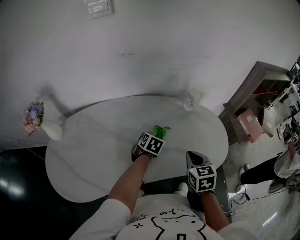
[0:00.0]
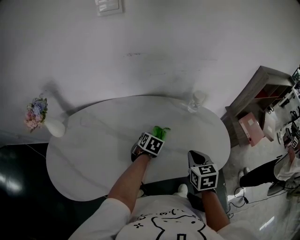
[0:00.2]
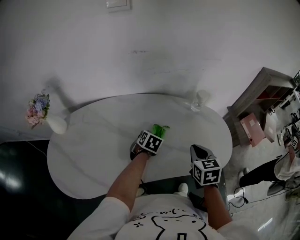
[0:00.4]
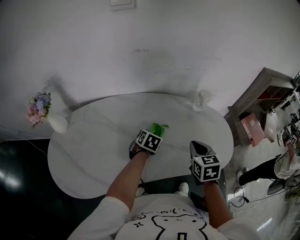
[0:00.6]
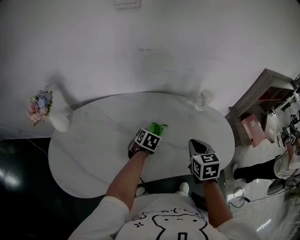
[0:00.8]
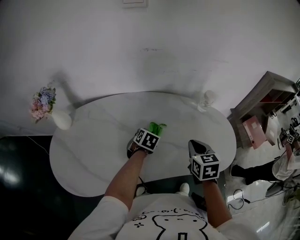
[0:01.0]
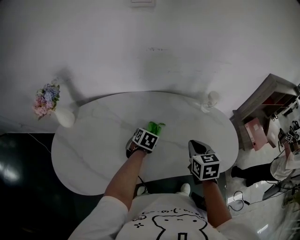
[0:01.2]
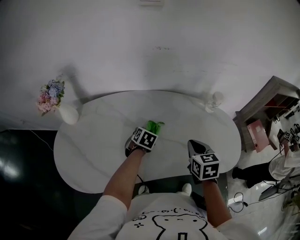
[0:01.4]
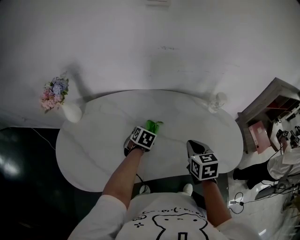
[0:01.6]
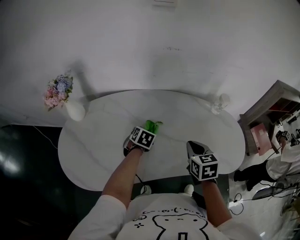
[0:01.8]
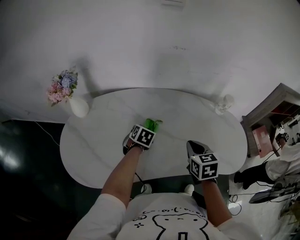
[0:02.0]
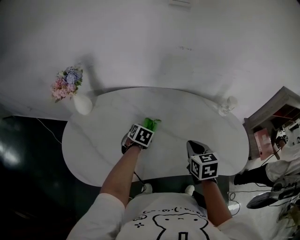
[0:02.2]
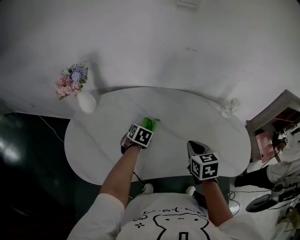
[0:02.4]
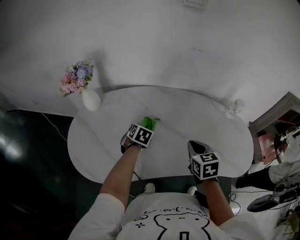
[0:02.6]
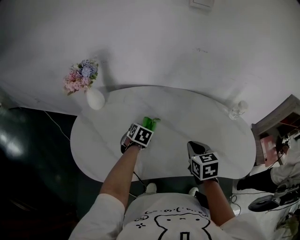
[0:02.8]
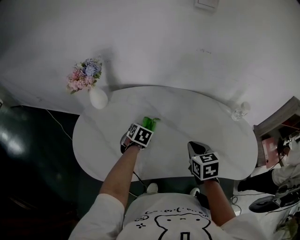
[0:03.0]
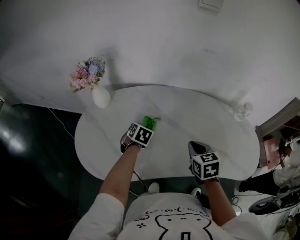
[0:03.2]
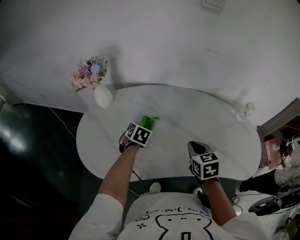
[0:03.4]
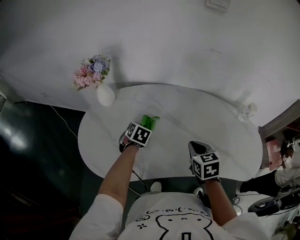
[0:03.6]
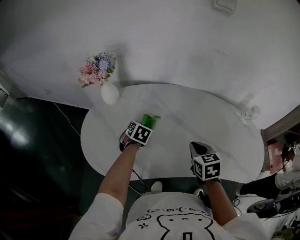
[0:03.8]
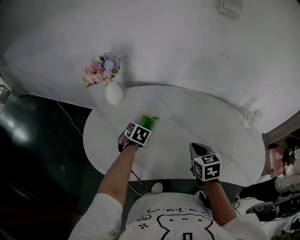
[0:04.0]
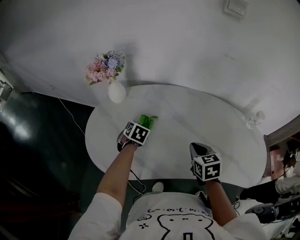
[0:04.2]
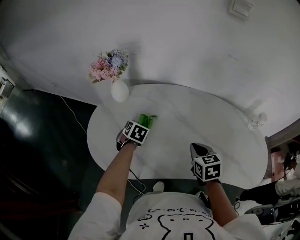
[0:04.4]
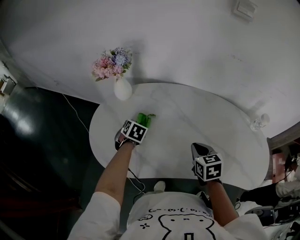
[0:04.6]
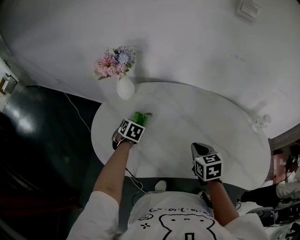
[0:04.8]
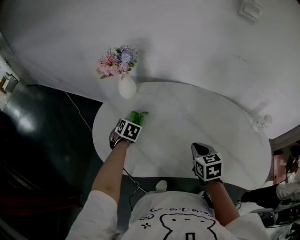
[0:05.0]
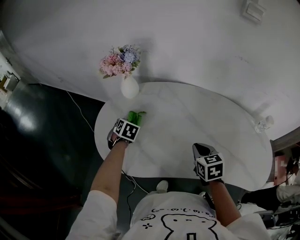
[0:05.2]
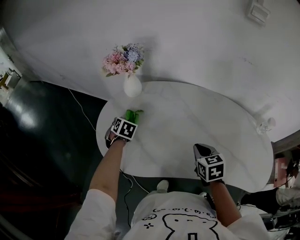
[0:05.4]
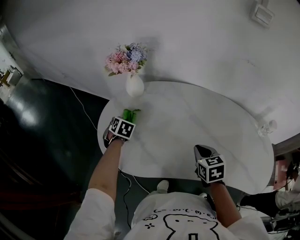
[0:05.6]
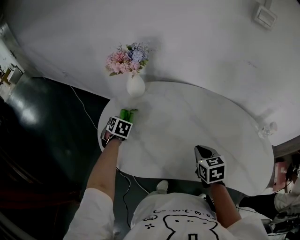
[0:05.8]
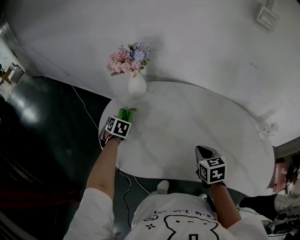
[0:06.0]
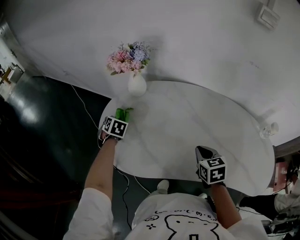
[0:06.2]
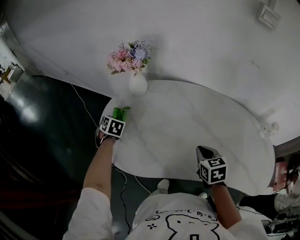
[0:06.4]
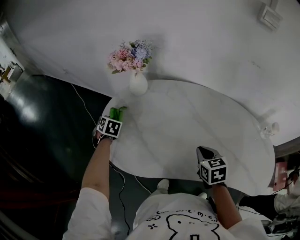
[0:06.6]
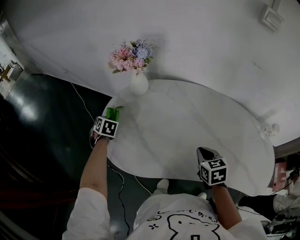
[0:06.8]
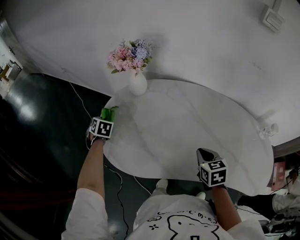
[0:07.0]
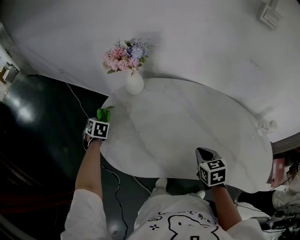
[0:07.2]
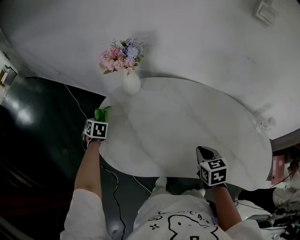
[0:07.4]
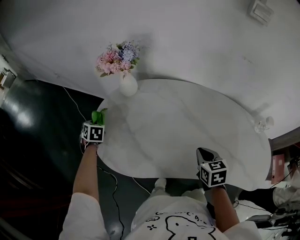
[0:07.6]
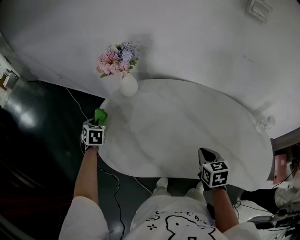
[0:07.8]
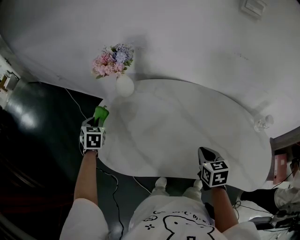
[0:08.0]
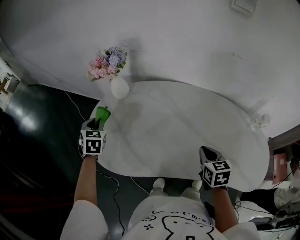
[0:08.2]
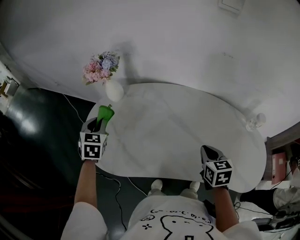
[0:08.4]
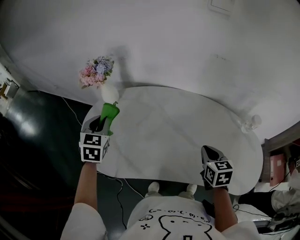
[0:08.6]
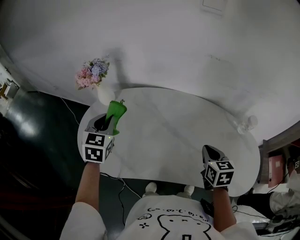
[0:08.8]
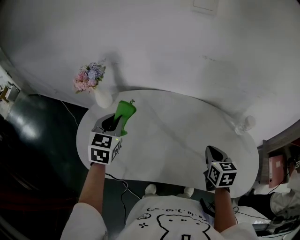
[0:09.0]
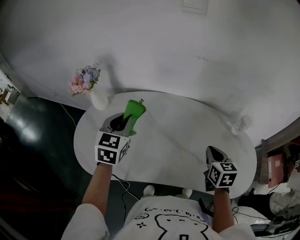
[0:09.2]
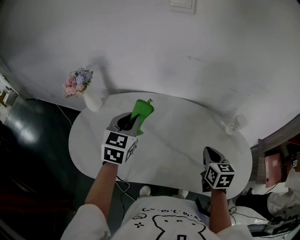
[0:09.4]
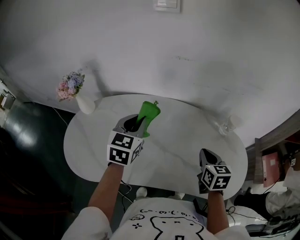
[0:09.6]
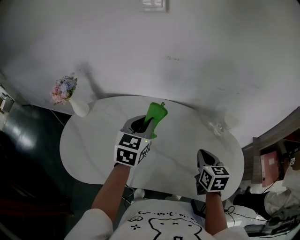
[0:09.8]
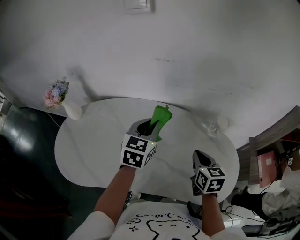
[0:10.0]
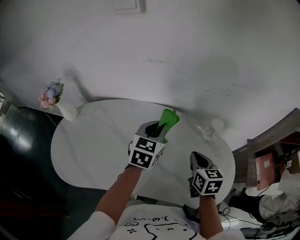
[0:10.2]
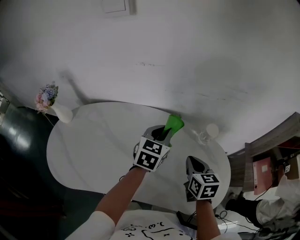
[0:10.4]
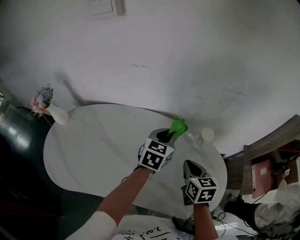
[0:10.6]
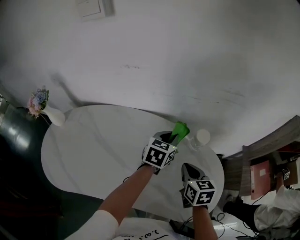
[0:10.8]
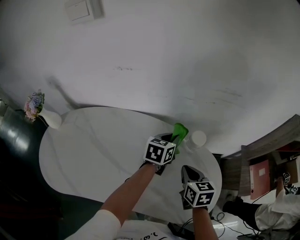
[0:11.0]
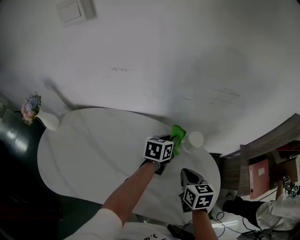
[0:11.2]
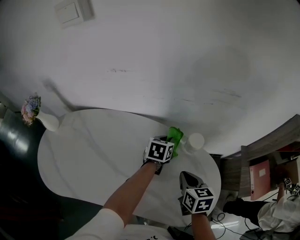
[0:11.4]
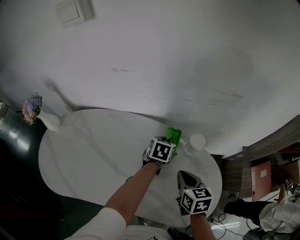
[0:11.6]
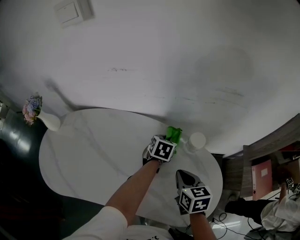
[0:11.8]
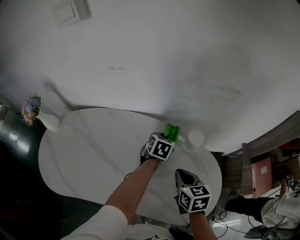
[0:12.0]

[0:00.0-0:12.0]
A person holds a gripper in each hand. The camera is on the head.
0:00.0 to 0:01.6: Both grippers move to the left, about 15 cm.
0:01.6 to 0:03.0: Both grippers travel together to the left, approximately 15 cm.
0:03.0 to 0:04.4: The right gripper goes about 5 cm to the left. The left gripper moves to the left, approximately 10 cm.
0:04.4 to 0:06.0: The left gripper is displaced to the left by roughly 20 cm.
0:06.0 to 0:07.6: The left gripper travels to the left by roughly 10 cm.
0:07.6 to 0:09.0: The right gripper moves to the right, approximately 20 cm, while the left gripper moves to the right and upward, about 40 cm, and rotates some 40 degrees.
0:09.0 to 0:10.4: The left gripper moves to the right, approximately 40 cm, and rotates roughly 20 degrees, while the right gripper goes about 15 cm to the right.
0:10.4 to 0:12.0: The right gripper ends up about 5 cm from where it was; the left gripper goes approximately 20 cm downward, to the right and forward, and swivels about 20 degrees.

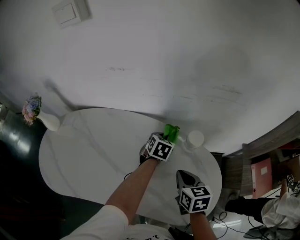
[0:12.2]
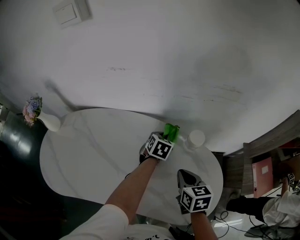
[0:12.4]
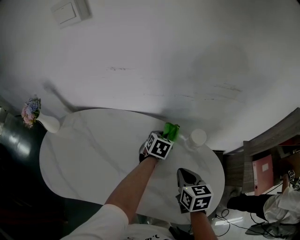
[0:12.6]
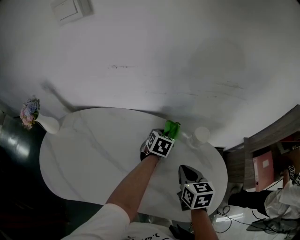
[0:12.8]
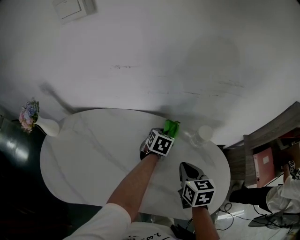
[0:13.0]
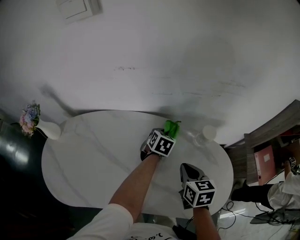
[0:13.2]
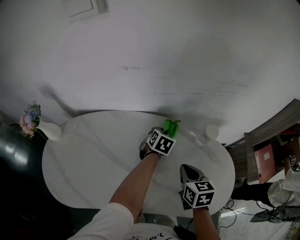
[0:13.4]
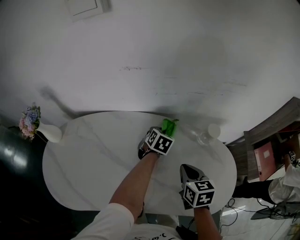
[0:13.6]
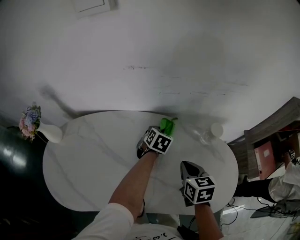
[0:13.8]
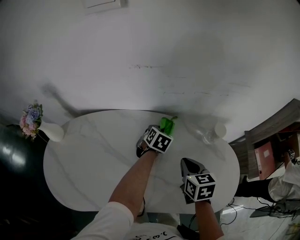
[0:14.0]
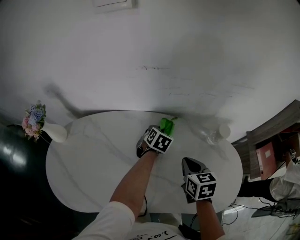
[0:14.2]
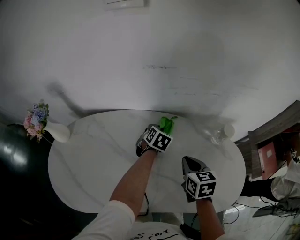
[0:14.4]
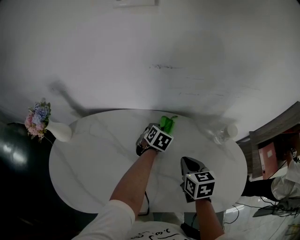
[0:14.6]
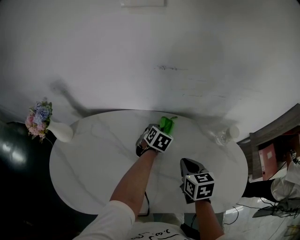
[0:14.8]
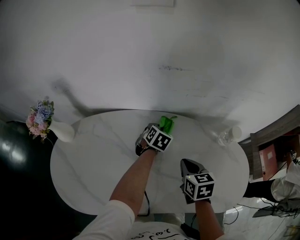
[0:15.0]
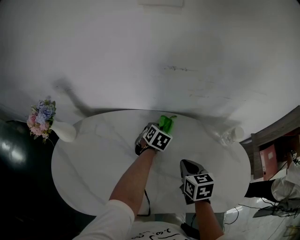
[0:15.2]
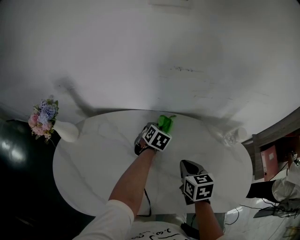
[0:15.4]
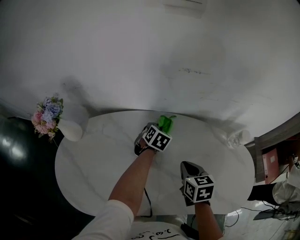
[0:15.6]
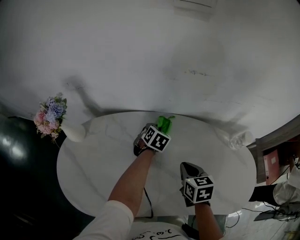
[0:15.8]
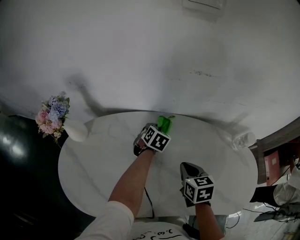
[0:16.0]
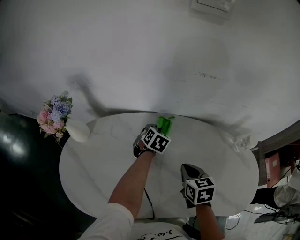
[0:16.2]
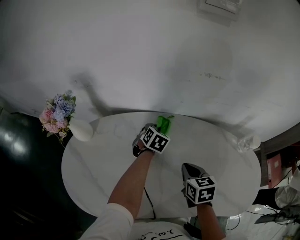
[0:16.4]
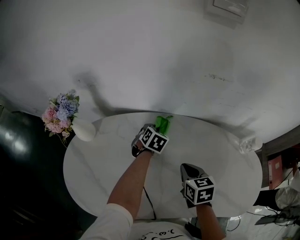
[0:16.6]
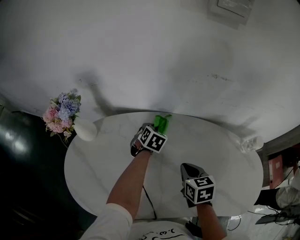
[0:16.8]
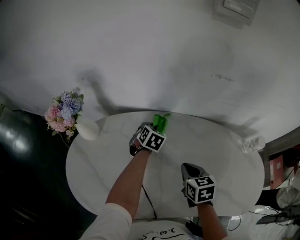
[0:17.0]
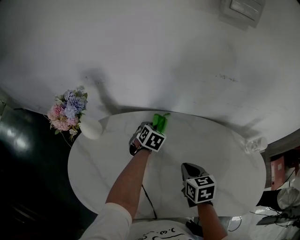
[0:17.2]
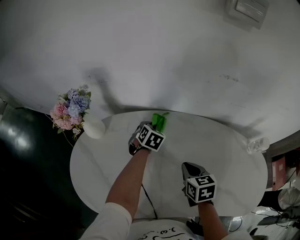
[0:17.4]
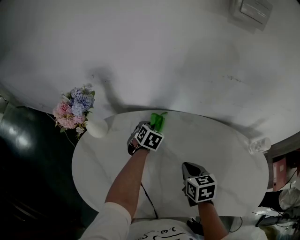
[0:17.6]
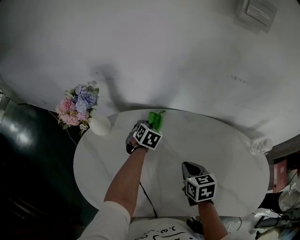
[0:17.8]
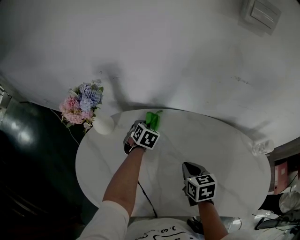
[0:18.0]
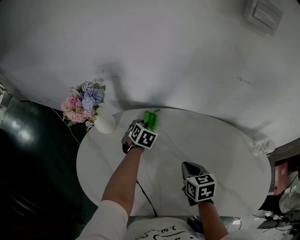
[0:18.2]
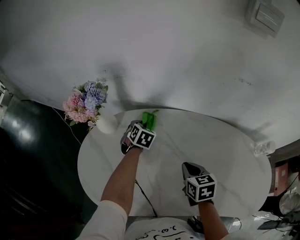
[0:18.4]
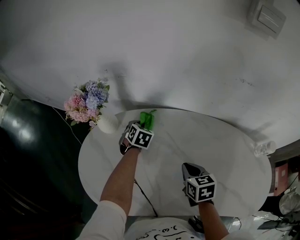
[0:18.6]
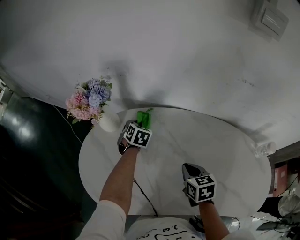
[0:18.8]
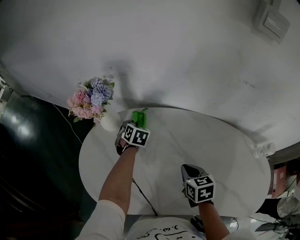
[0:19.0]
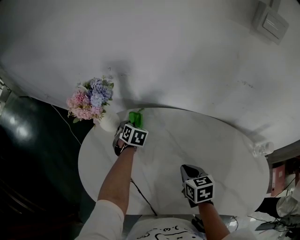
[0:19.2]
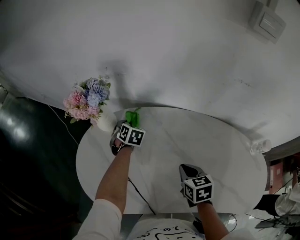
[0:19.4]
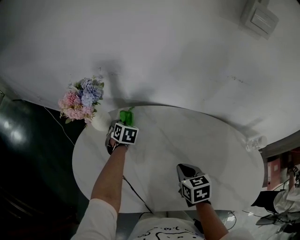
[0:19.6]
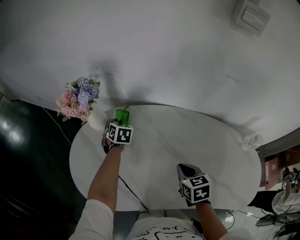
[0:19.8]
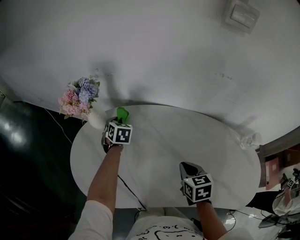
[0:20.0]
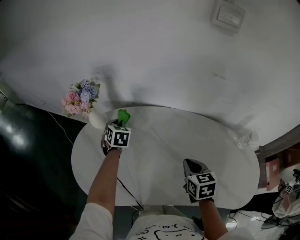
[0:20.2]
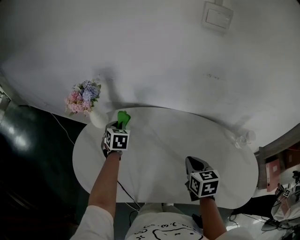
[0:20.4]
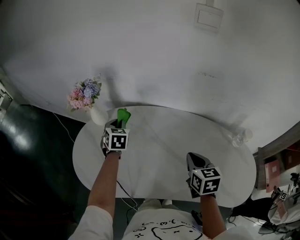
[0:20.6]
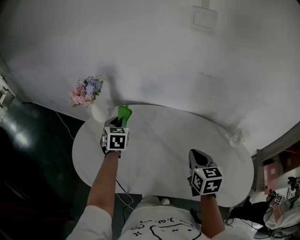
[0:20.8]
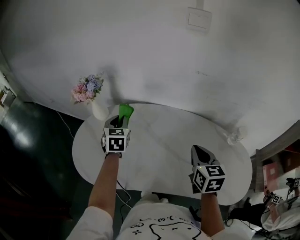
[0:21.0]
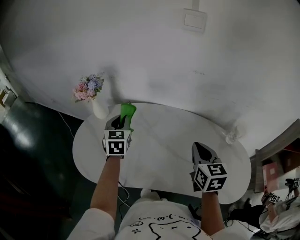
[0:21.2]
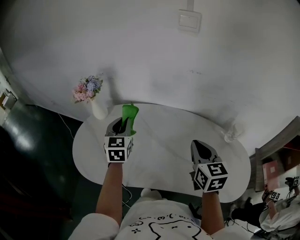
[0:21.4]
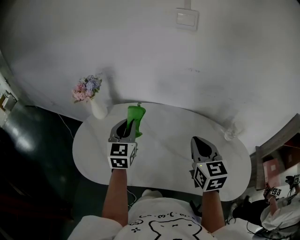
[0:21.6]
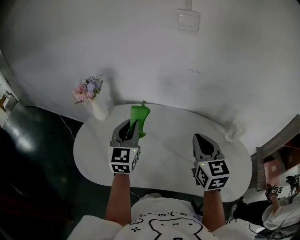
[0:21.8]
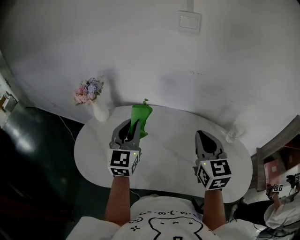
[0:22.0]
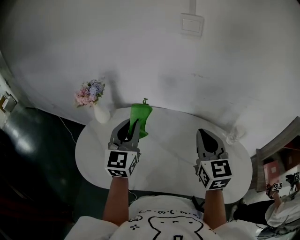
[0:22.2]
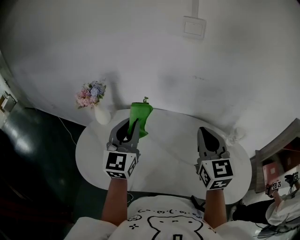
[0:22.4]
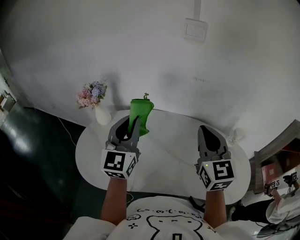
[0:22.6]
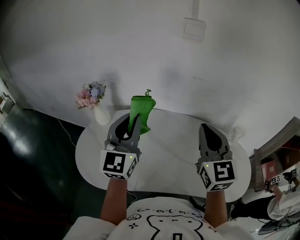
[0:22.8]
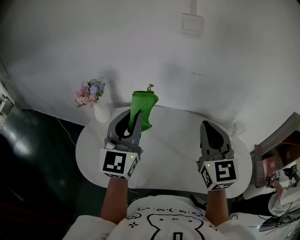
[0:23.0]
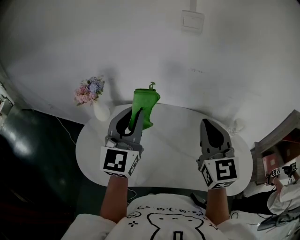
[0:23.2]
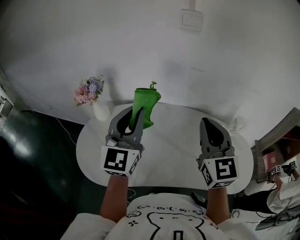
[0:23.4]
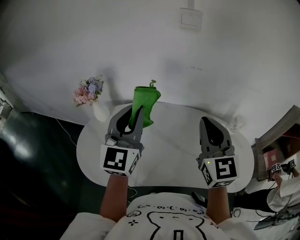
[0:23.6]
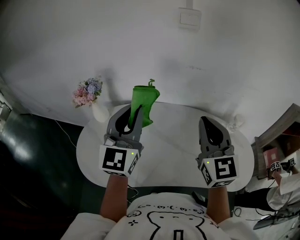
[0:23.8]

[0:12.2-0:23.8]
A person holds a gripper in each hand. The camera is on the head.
0:12.2 to 0:13.6: The grippers both shift to the left by roughly 10 cm.
0:13.6 to 0:15.0: Both grippers move to the left, approximately 15 cm.
0:15.0 to 0:16.6: Both grippers move to the left, some 15 cm.
0:16.6 to 0:18.0: The right gripper is displaced to the left by roughly 10 cm; the left gripper heads to the left, covering roughly 15 cm.
0:18.0 to 0:19.4: The left gripper moves to the left, some 10 cm.
0:19.4 to 0:21.0: The left gripper moves upward and backward, roughly 25 cm, and swivels some 30 degrees. Meanwhile the right gripper heads upward, to the right and backward, covering approximately 25 cm, and turns by roughly 30 degrees.
0:21.0 to 0:22.4: The right gripper goes some 15 cm upward, and turns by about 20 degrees; the left gripper heads upward, backward and to the right, covering approximately 20 cm, and points its fingers approximately 30 degrees further upward.
0:22.4 to 0:23.8: The right gripper shifts by roughly 5 cm. The left gripper heads upward, covering about 5 cm.
